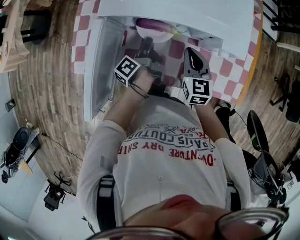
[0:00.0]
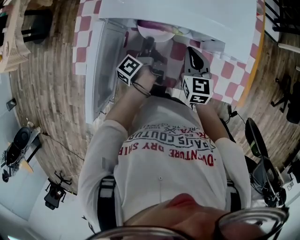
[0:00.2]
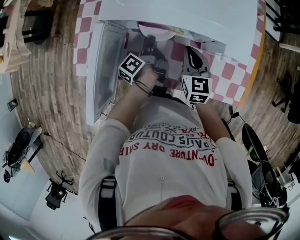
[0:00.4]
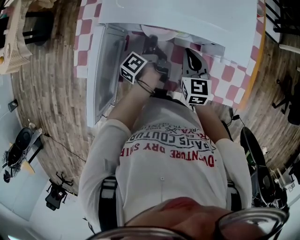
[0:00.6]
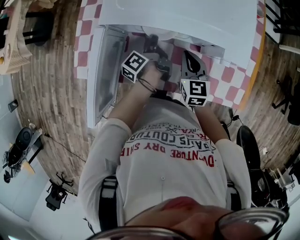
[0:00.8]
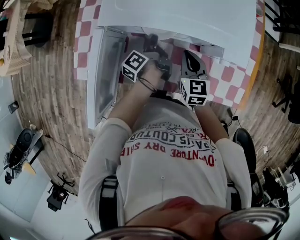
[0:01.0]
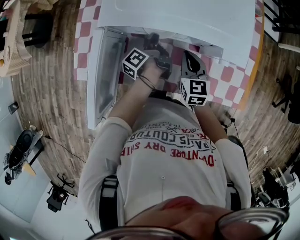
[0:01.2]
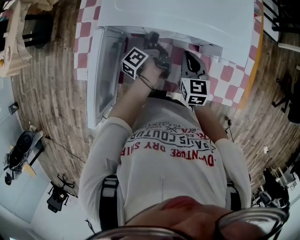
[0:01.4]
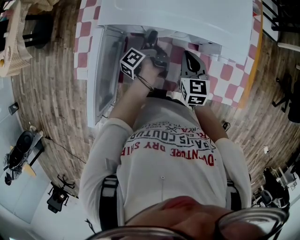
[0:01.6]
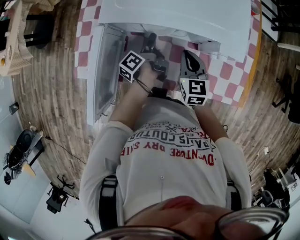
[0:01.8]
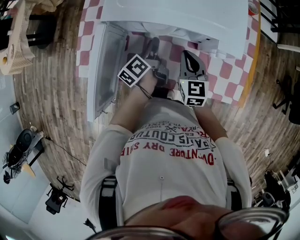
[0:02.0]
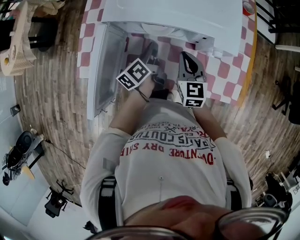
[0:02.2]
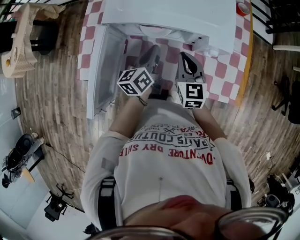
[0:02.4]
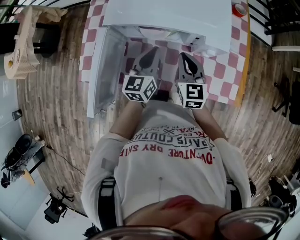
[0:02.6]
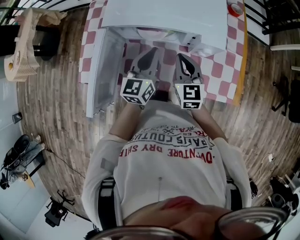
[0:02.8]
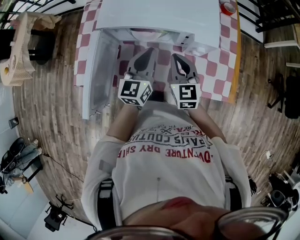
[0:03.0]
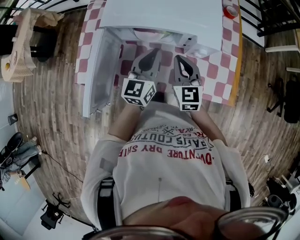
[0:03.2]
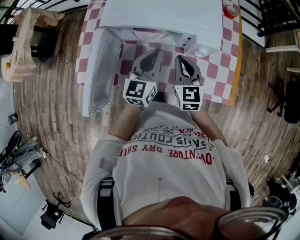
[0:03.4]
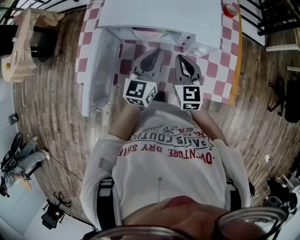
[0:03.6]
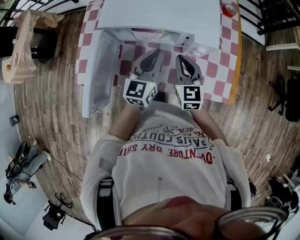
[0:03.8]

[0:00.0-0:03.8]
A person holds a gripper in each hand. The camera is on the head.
1.2 to 2.6 s: The right gripper is displaced upward by about 10 cm.

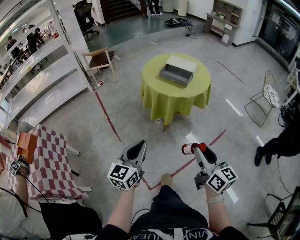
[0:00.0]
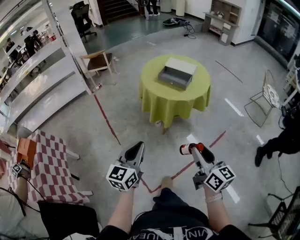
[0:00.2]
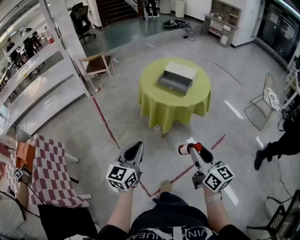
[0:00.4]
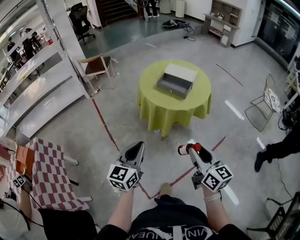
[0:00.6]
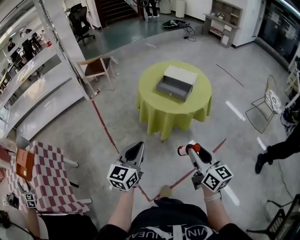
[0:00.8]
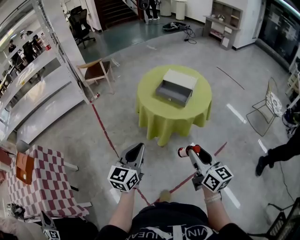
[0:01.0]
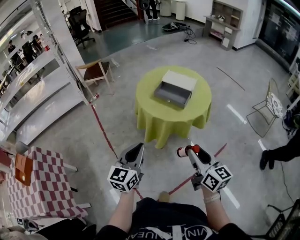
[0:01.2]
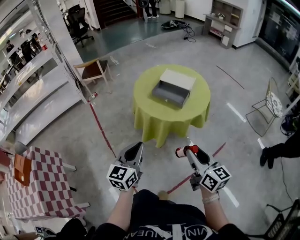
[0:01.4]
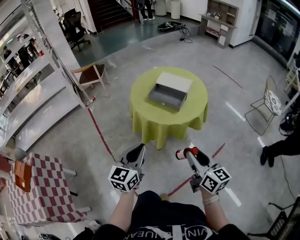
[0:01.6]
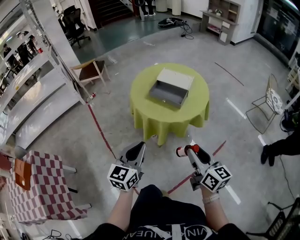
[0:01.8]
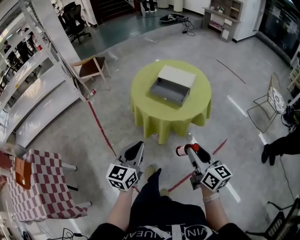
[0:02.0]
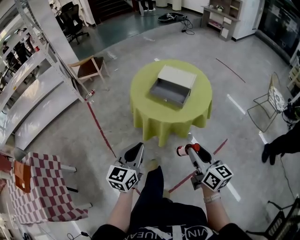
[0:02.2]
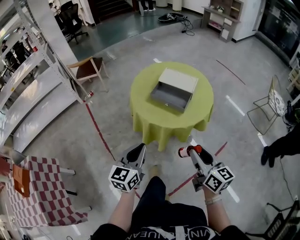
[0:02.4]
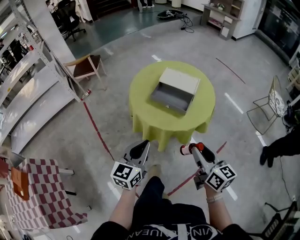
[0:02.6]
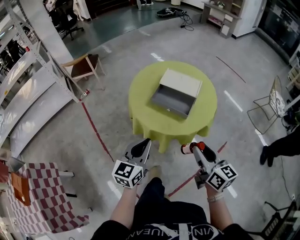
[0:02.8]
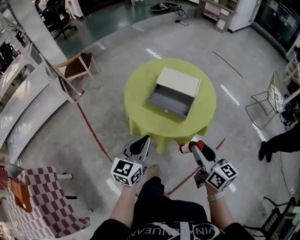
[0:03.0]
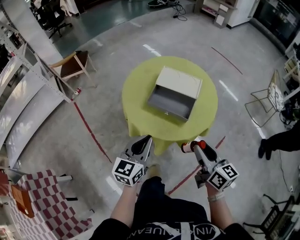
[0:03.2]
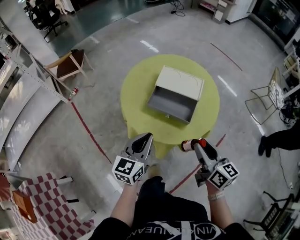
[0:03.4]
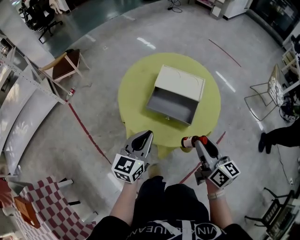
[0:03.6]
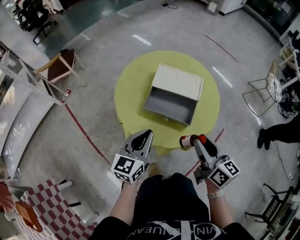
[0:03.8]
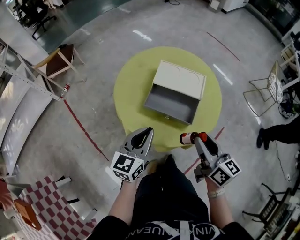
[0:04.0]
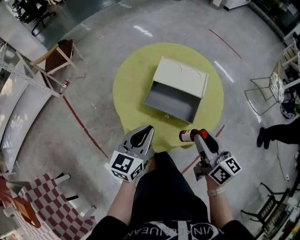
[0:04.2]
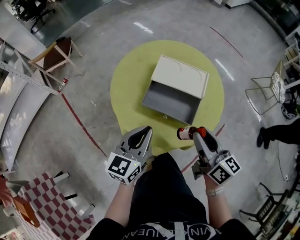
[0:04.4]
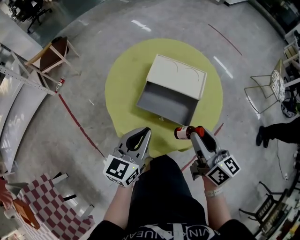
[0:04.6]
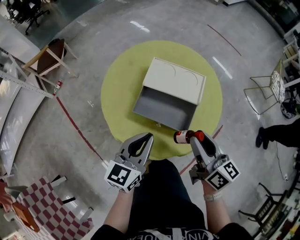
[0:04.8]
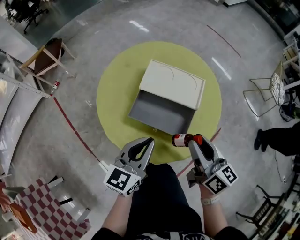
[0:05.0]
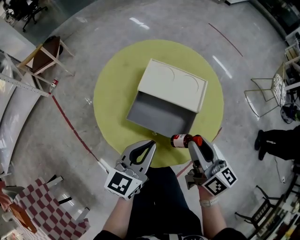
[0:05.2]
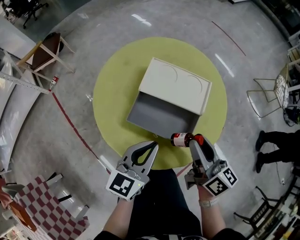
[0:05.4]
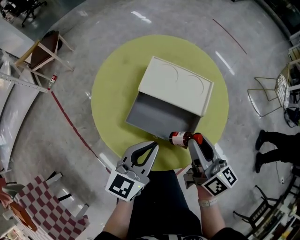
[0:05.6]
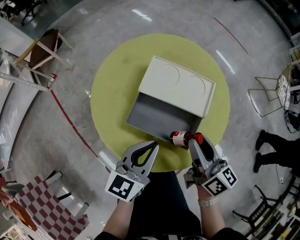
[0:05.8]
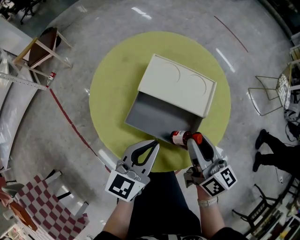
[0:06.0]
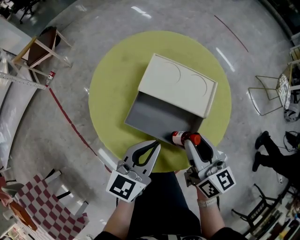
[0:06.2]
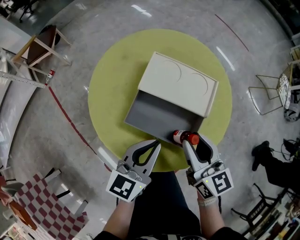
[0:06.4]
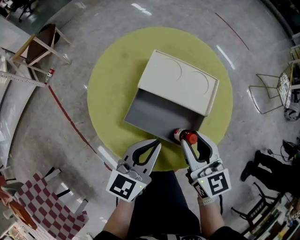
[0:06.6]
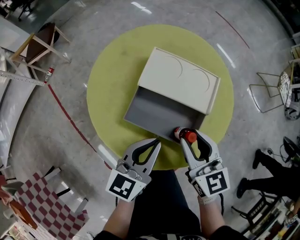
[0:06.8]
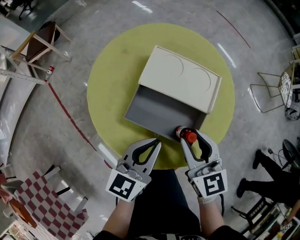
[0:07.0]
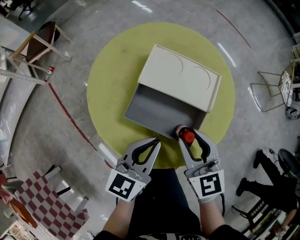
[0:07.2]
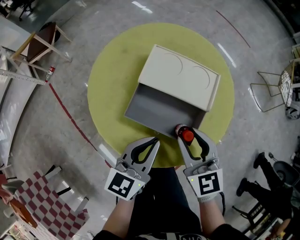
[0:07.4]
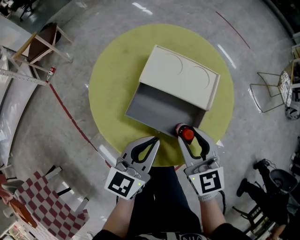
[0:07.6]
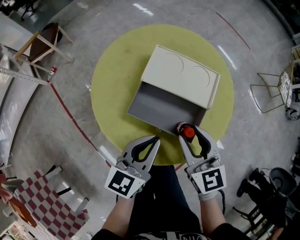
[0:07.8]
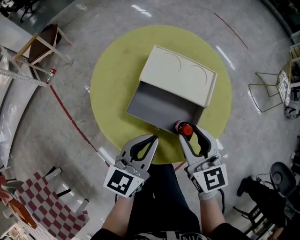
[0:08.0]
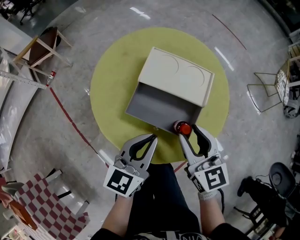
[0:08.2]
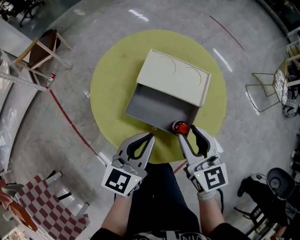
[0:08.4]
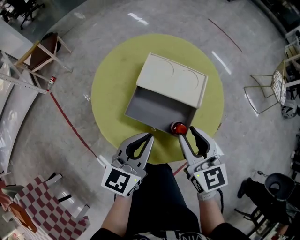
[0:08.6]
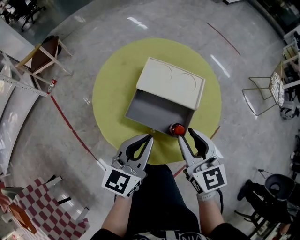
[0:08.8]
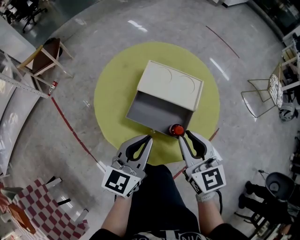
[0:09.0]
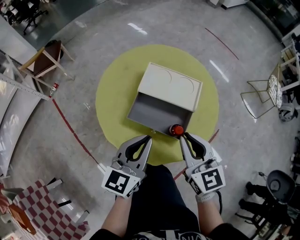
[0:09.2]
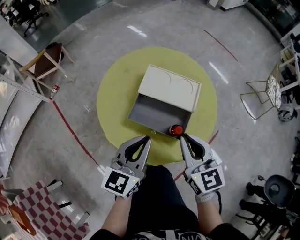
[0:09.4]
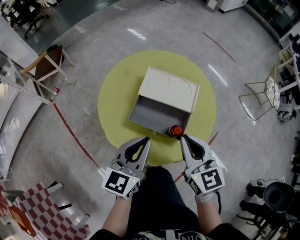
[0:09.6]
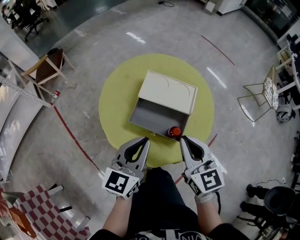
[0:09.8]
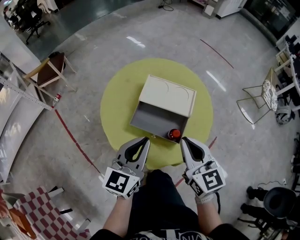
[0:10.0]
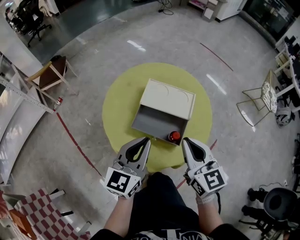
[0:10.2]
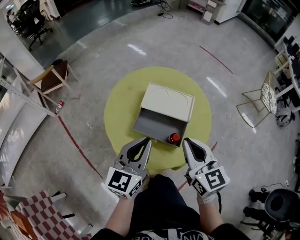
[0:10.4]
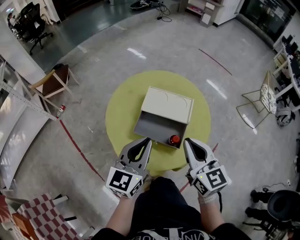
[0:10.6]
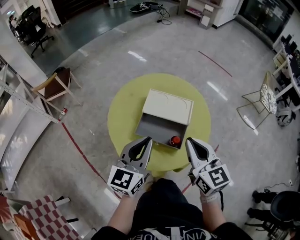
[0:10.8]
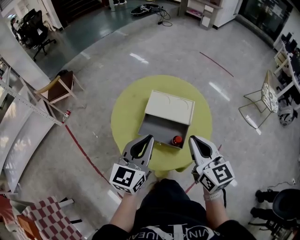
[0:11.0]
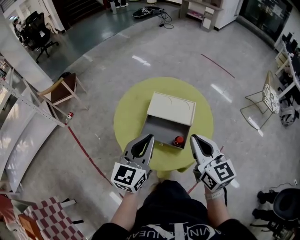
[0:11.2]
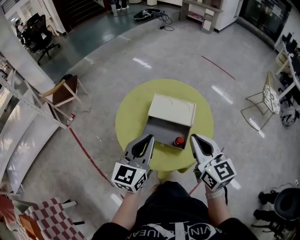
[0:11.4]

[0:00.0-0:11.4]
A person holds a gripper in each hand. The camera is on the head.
0.0 to 1.4 s: Both grippers travel together forward, about 20 cm.
1.4 to 2.8 s: Both grippers move forward, some 15 cm.
2.8 to 4.2 s: Both grippers move forward, about 15 cm.
4.2 to 5.6 s: The right gripper goes approximately 10 cm forward and downward; the left gripper moves to the right and forward, approximately 10 cm.
5.6 to 7.2 s: The right gripper shifts by about 5 cm, and rotates around the line of its fingers by some 40 degrees, counterclockwise from behind.
7.2 to 8.6 s: The grippers stay close to where they were, moving slightly.
8.6 to 10.0 s: The grippers both shift upward by approximately 5 cm. The right gripper closes.
10.0 to 11.4 s: The grippers both shift upward by some 5 cm.

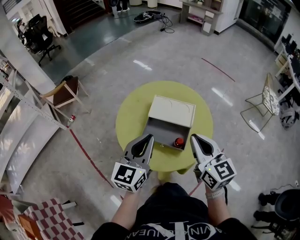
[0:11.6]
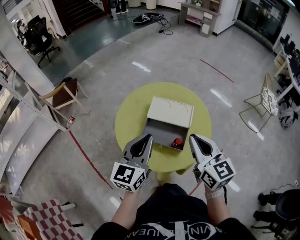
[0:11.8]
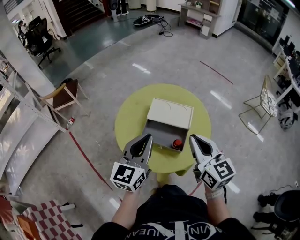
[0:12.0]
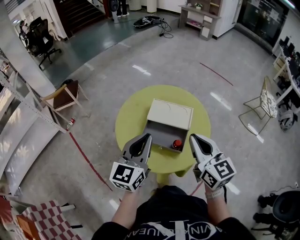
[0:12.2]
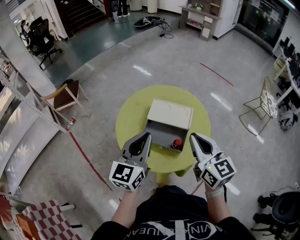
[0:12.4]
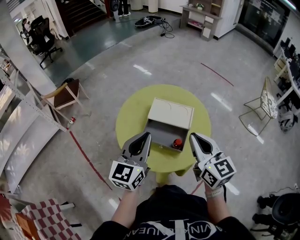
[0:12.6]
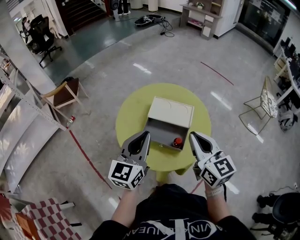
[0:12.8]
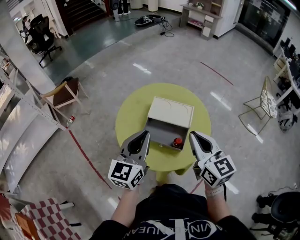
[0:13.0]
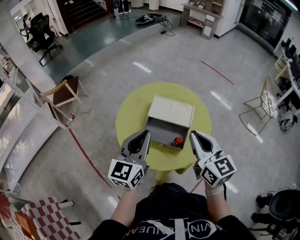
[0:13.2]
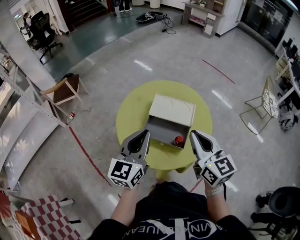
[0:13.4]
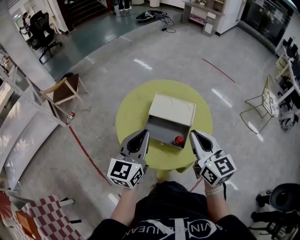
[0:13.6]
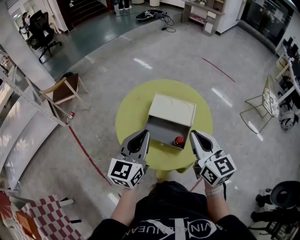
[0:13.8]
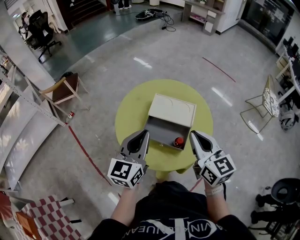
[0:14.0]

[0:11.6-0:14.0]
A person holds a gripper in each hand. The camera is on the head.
11.6 to 14.0 s: The grippers make only small movements.

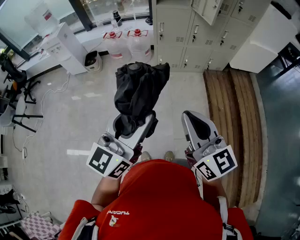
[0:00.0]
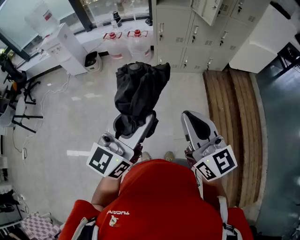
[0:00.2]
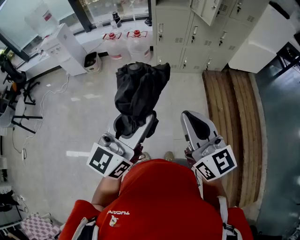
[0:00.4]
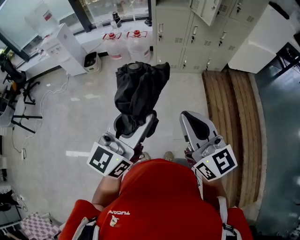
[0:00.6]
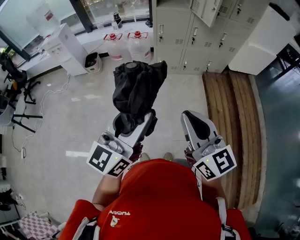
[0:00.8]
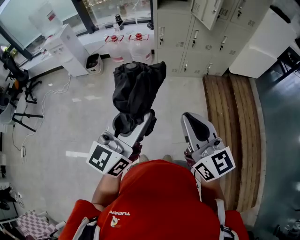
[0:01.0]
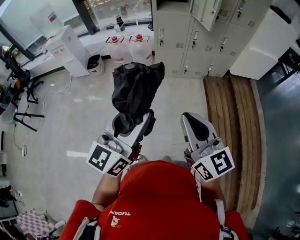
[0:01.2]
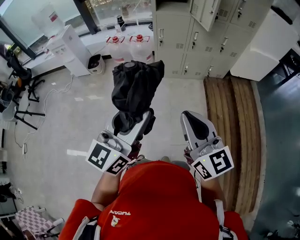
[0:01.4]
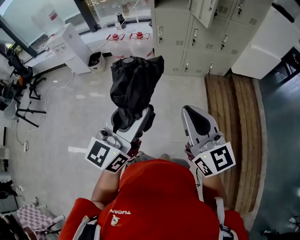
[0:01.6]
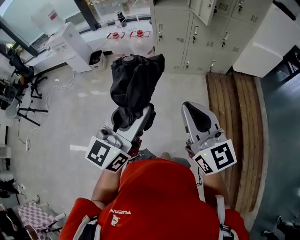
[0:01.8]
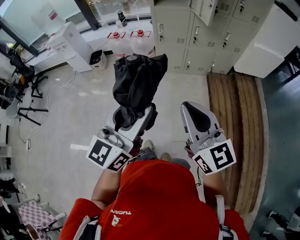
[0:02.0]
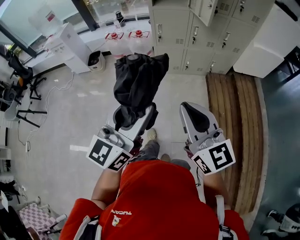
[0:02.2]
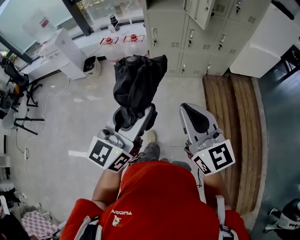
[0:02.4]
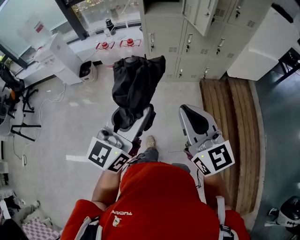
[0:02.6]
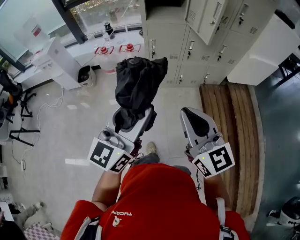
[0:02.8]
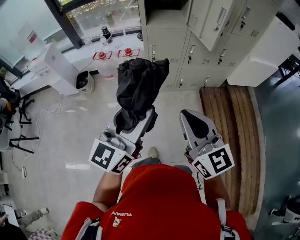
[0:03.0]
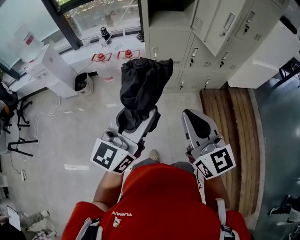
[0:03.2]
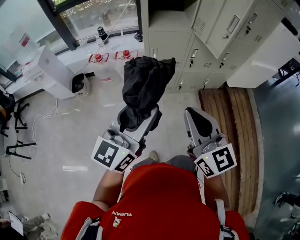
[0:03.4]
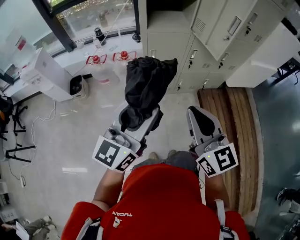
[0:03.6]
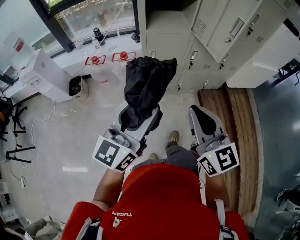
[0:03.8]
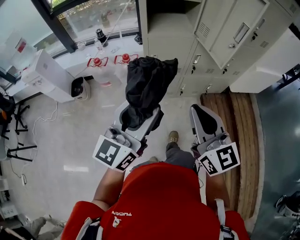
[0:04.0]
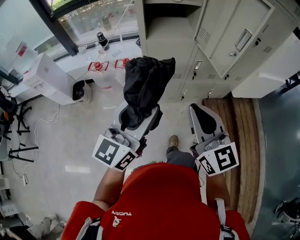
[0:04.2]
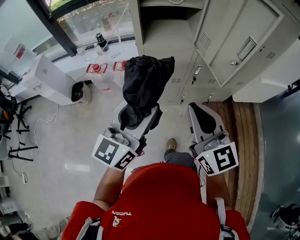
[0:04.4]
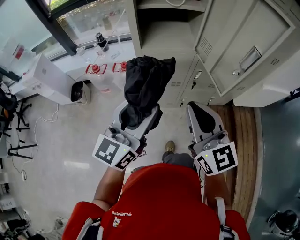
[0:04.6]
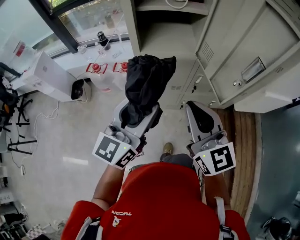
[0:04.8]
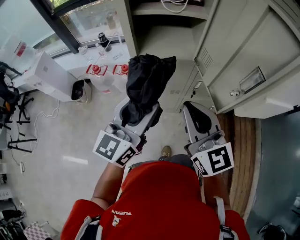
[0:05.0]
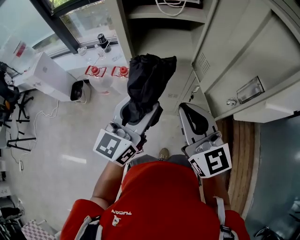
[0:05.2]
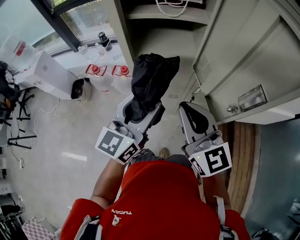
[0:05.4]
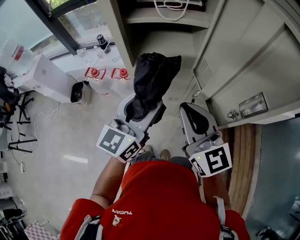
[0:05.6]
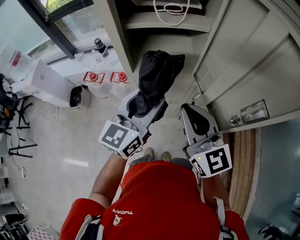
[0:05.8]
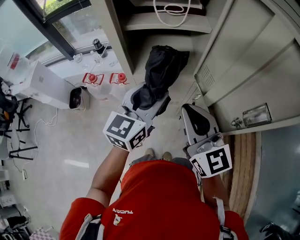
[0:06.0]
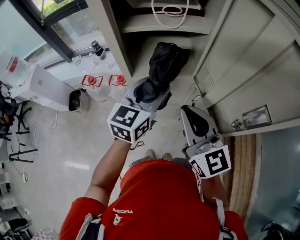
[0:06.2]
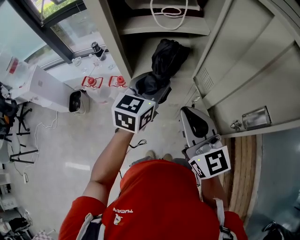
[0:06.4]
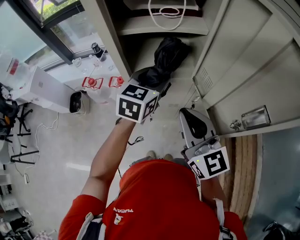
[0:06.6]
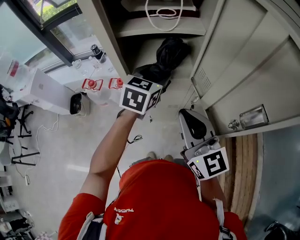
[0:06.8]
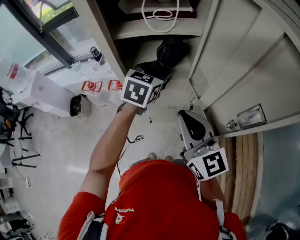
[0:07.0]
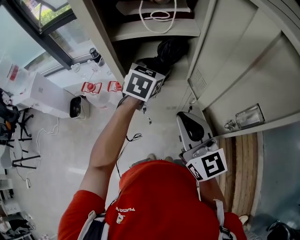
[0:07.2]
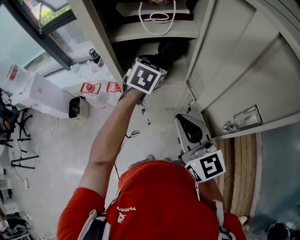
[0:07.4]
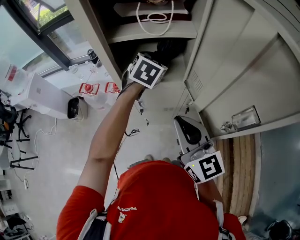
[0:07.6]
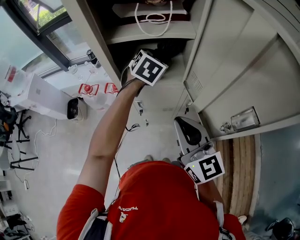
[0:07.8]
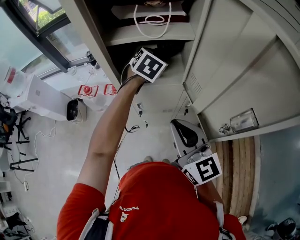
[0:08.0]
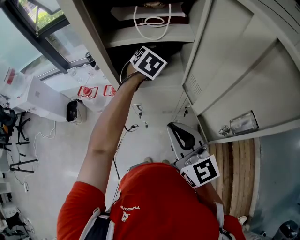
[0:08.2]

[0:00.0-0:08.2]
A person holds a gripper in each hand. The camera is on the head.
0.0 to 1.6 s: The two grippers go approximately 10 cm to the right.
1.6 to 3.2 s: The two grippers go roughly 25 cm forward.
3.2 to 5.0 s: The two grippers go roughly 30 cm forward.
5.0 to 6.6 s: The right gripper heads forward, covering about 10 cm, while the left gripper heads forward, covering roughly 20 cm, and swivels about 30 degrees.
6.6 to 8.2 s: The left gripper goes roughly 15 cm forward, and turns by about 30 degrees.
